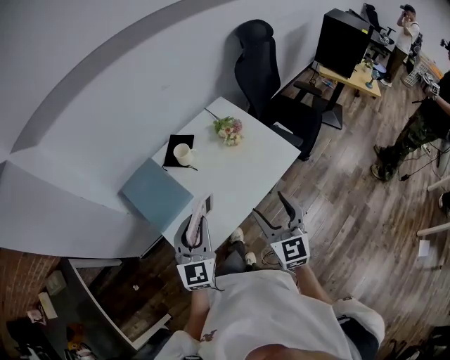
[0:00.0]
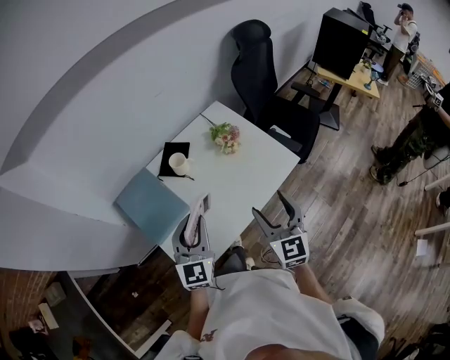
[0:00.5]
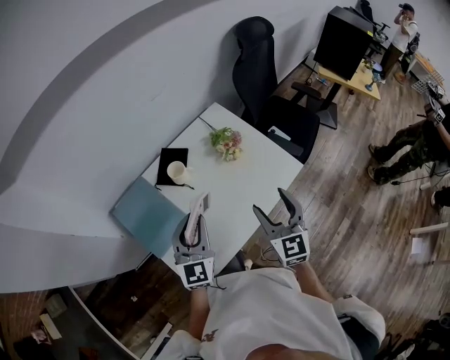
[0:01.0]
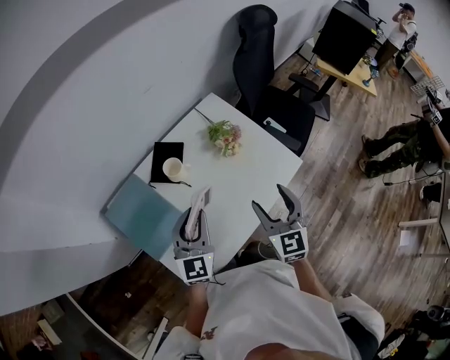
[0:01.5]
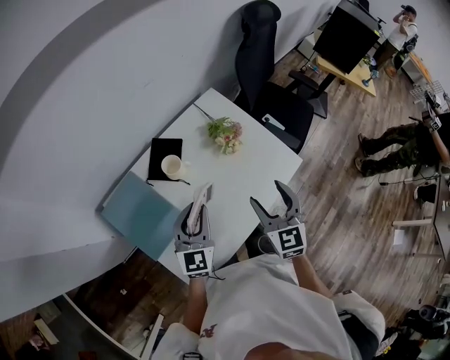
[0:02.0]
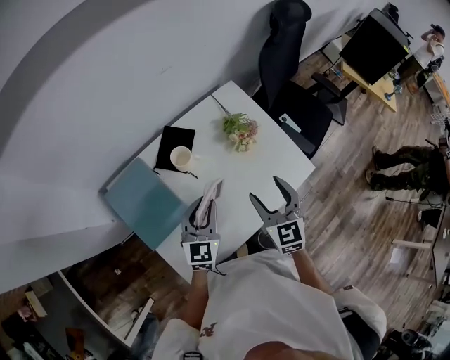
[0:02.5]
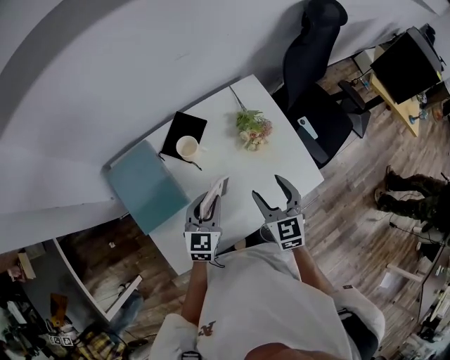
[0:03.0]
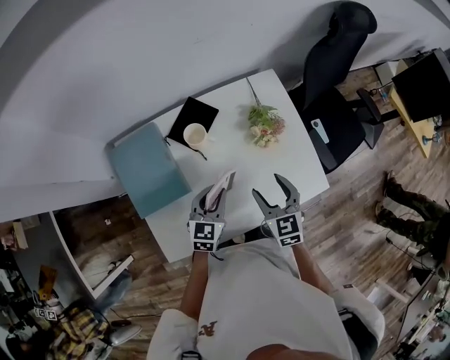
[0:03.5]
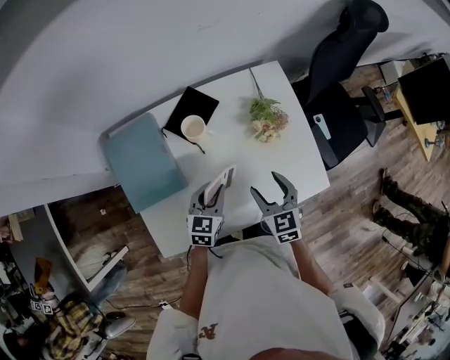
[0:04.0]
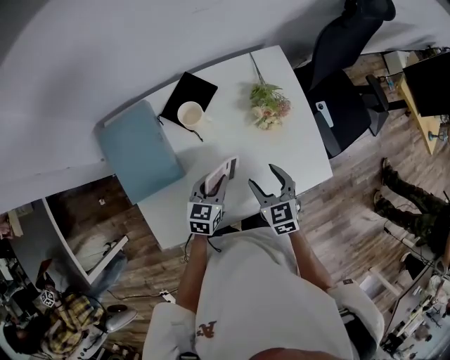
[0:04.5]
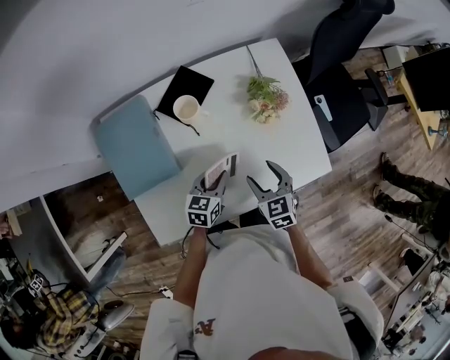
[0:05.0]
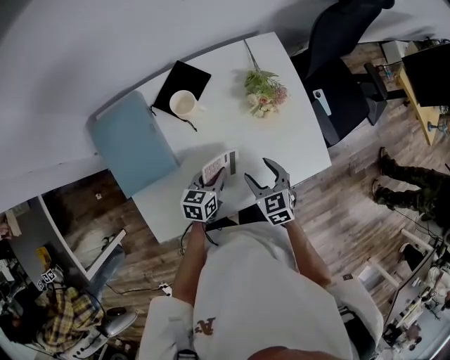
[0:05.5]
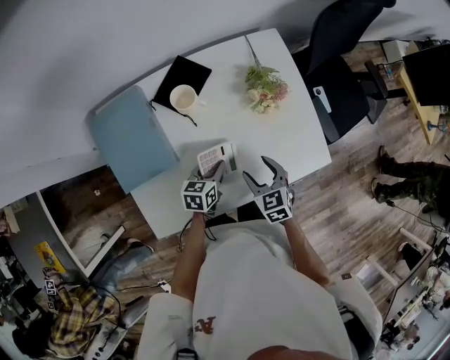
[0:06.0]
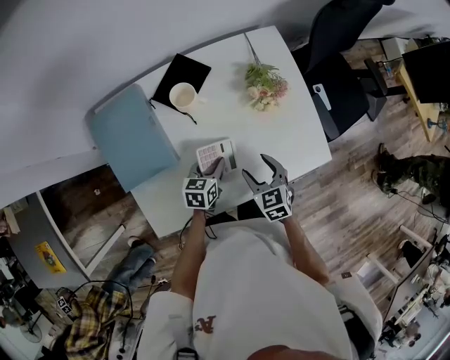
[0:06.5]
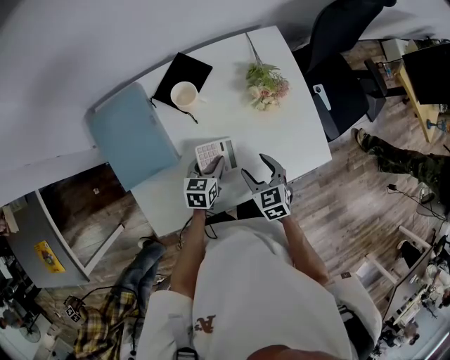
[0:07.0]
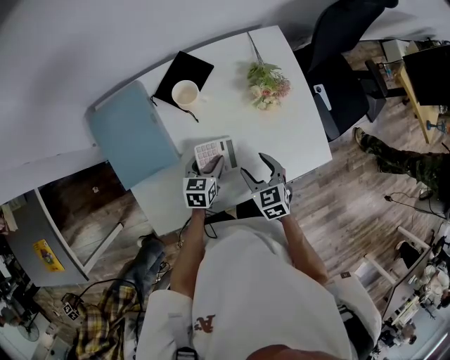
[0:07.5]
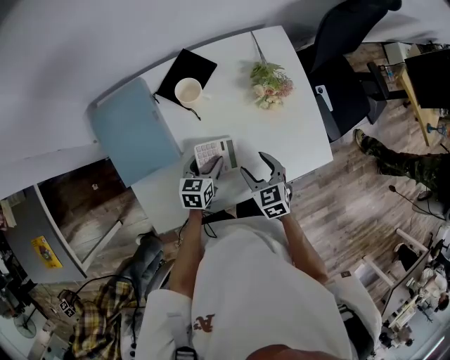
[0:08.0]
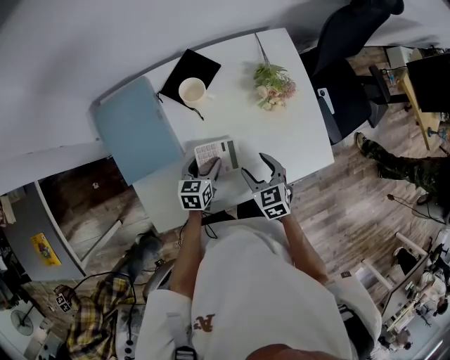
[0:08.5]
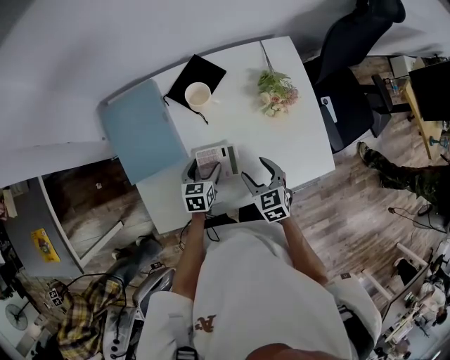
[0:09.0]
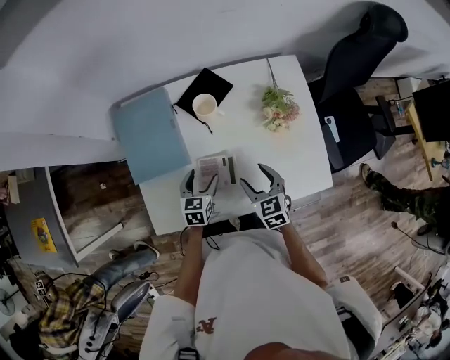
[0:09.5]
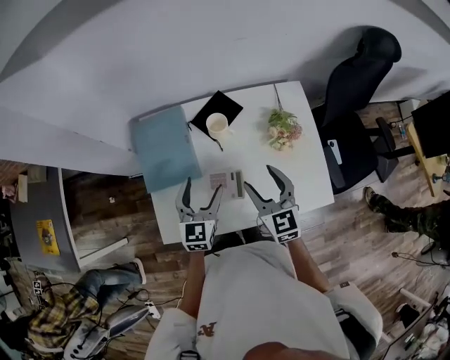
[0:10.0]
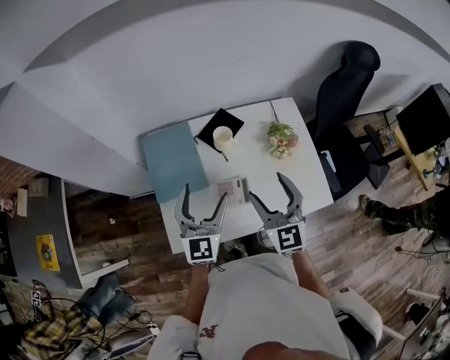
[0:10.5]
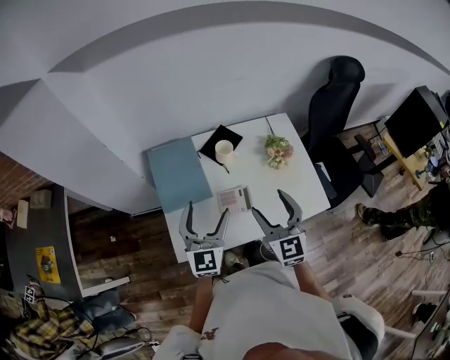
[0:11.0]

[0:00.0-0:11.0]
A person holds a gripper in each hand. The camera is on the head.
0:00.0 to 0:02.0: The right gripper shifts about 20 cm forward; the left gripper moves forward and downward, roughly 20 cm.
0:02.0 to 0:03.5: The left gripper shifts approximately 10 cm downward, and swivels approximately 20 degrees, while the right gripper heads downward and forward, covering approximately 15 cm, and rotates about 30 degrees.
0:03.5 to 0:05.5: Both grippers travel together downward, about 10 cm. The left gripper changes its angle by roughly 30 degrees.
0:05.5 to 0:07.5: The left gripper opens.
0:07.5 to 0:09.0: The left gripper moves some 5 cm.
0:09.0 to 0:11.0: The two grippers go some 30 cm upward. The right gripper angles its fingers upward, by roughly 30 degrees. The left gripper angles its fingers upward, by about 40 degrees.

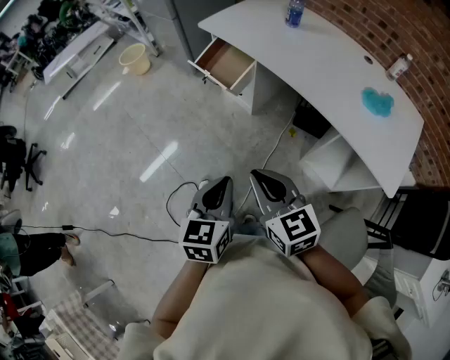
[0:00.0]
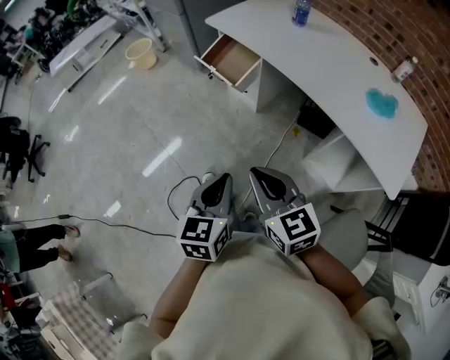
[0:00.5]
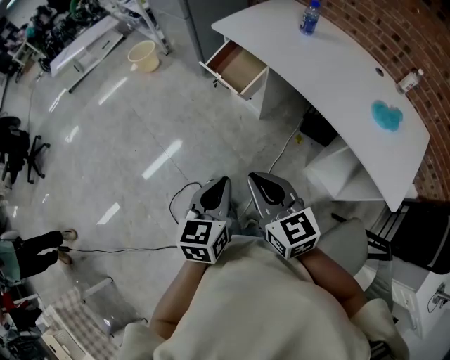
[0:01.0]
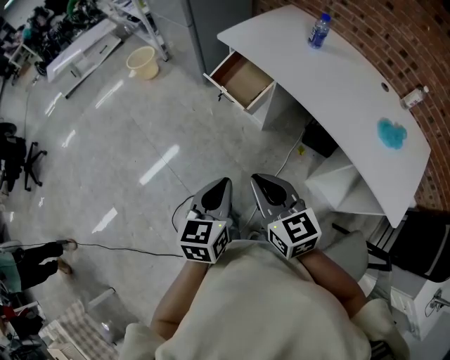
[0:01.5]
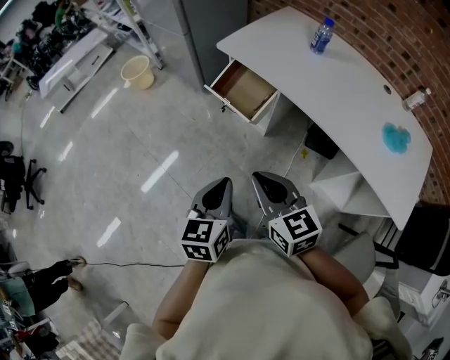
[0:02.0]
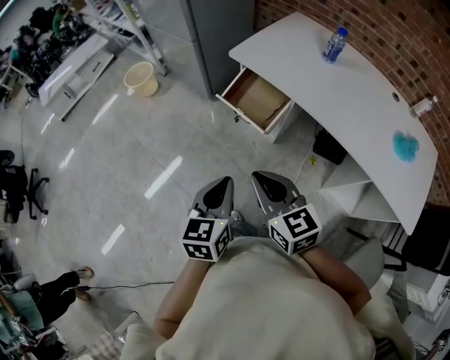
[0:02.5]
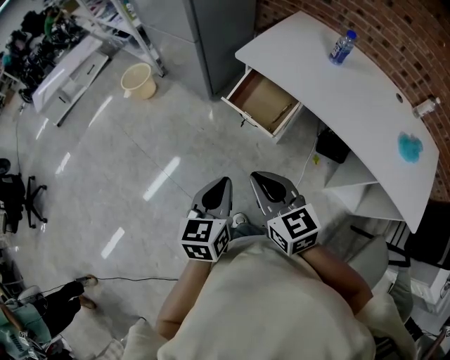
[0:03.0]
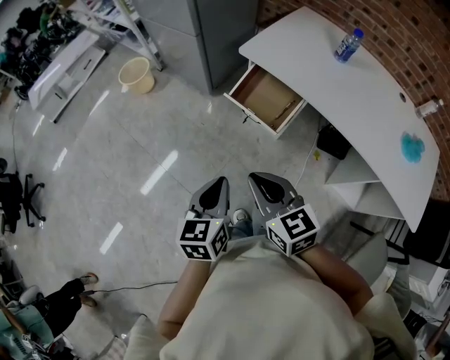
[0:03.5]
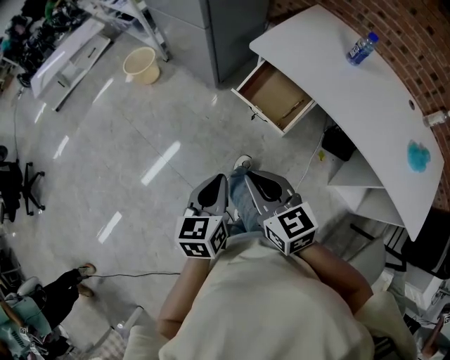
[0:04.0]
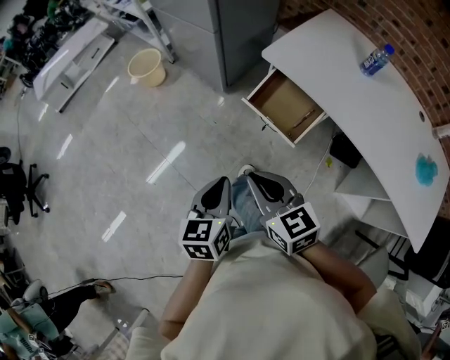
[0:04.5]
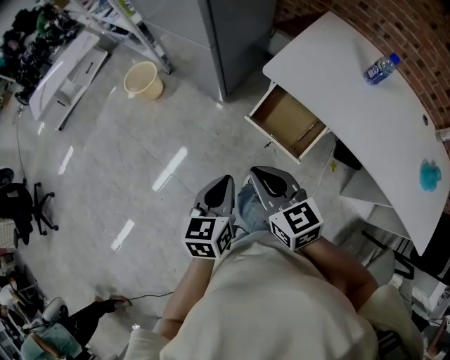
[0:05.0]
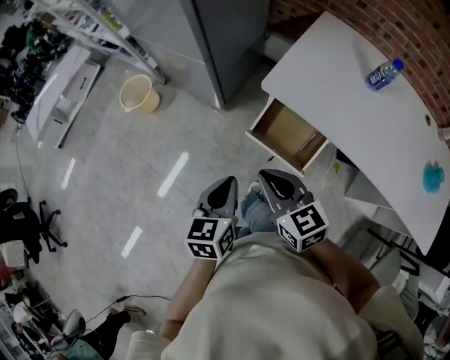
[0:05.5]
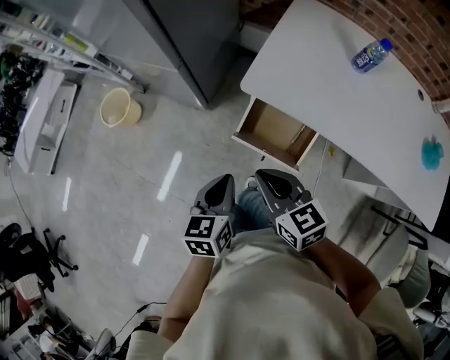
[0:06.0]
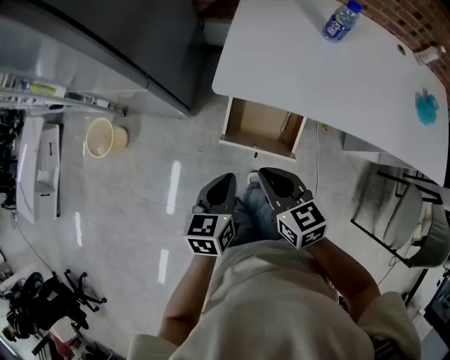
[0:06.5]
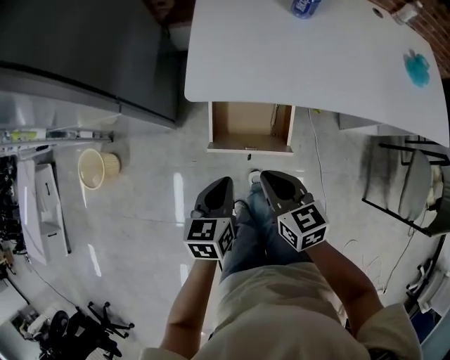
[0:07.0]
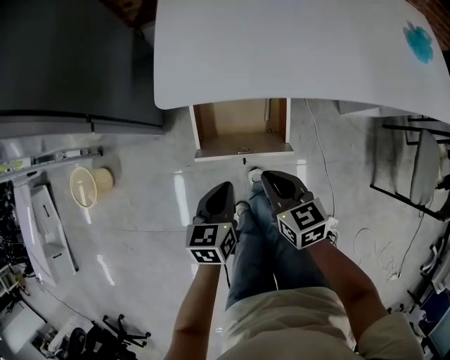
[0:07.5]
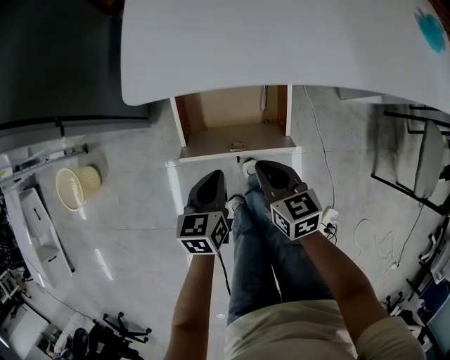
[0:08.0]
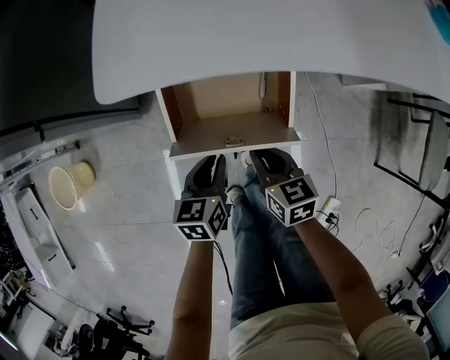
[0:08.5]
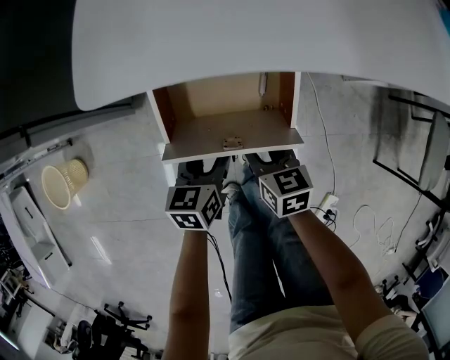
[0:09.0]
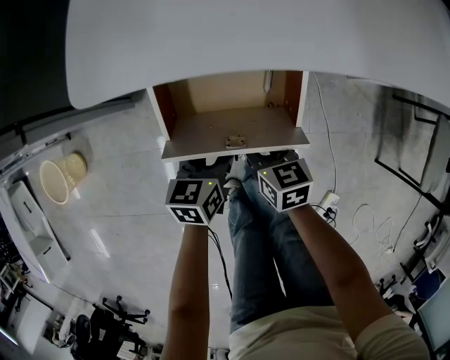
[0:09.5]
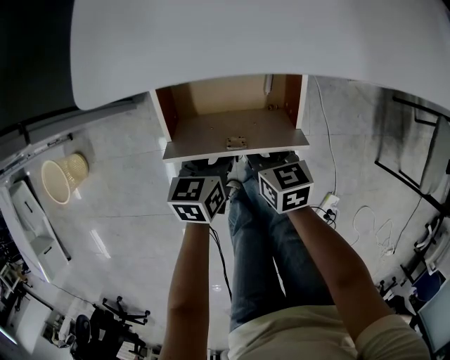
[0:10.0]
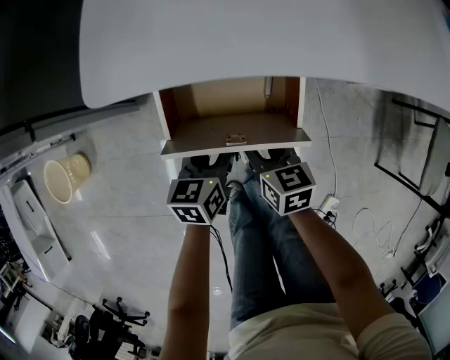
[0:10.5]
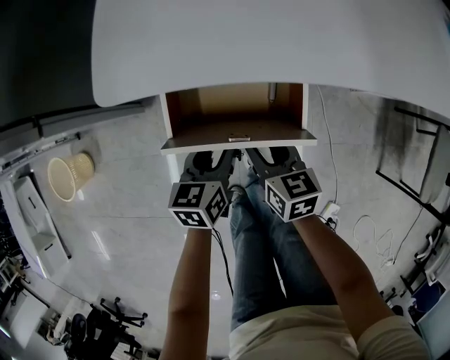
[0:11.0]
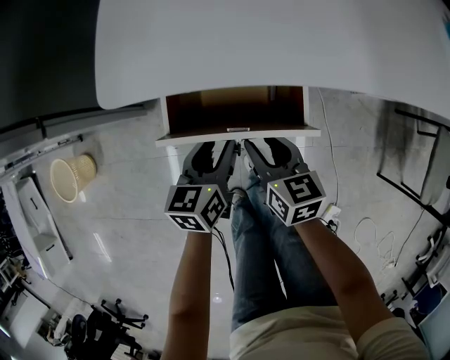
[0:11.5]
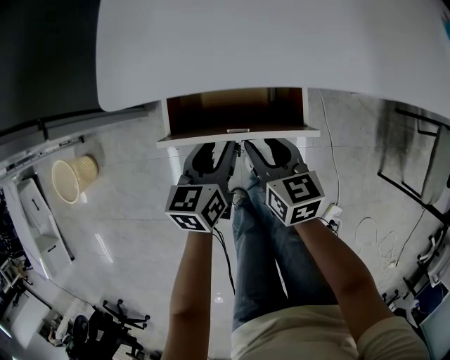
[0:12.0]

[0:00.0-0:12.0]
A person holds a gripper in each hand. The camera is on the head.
0:00.0 to 0:02.0: Both grippers move forward and to the left, some 20 cm.
0:02.0 to 0:04.0: Both grippers move to the left and forward, approximately 20 cm.
0:04.0 to 0:06.0: Both grippers move forward, about 25 cm.
0:06.0 to 0:08.0: Both grippers travel together downward, approximately 30 cm. The left gripper rotates some 30 degrees, while the right gripper changes its angle by approximately 40 degrees.
0:08.0 to 0:10.0: The left gripper is displaced downward and forward by some 10 cm, and opens, while the right gripper is displaced downward by about 10 cm, and opens.
0:10.0 to 0:12.0: The two grippers go some 5 cm upward.

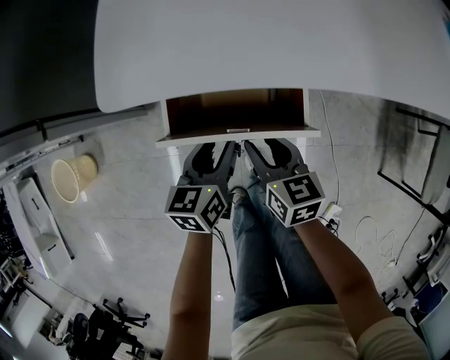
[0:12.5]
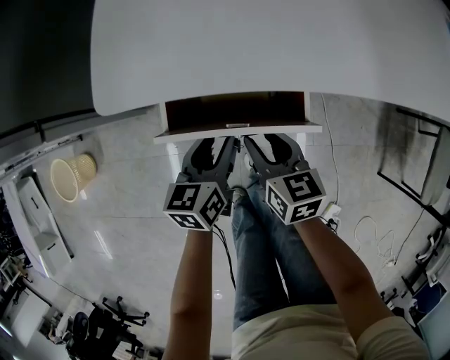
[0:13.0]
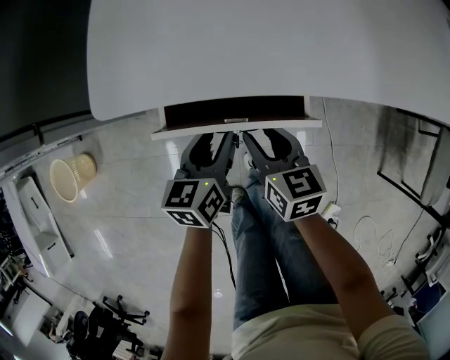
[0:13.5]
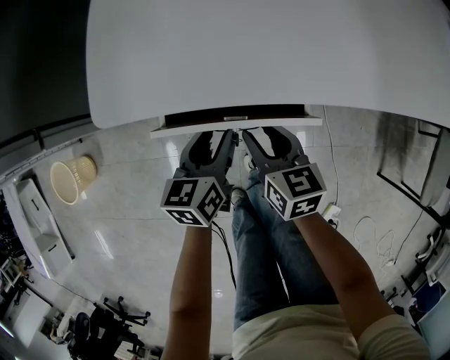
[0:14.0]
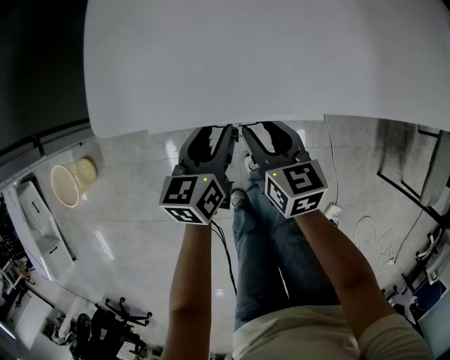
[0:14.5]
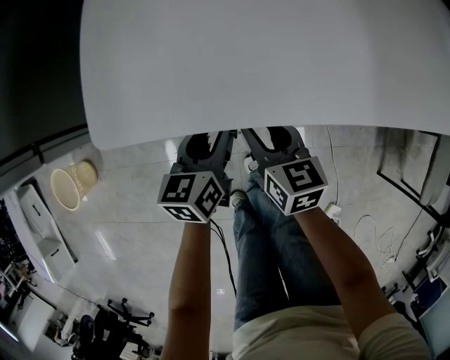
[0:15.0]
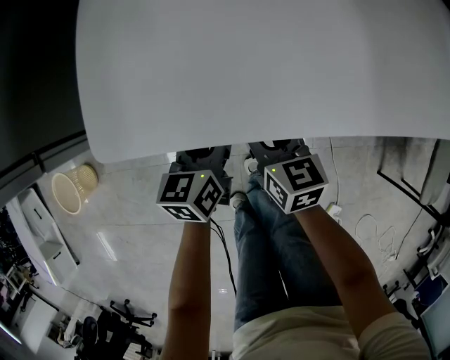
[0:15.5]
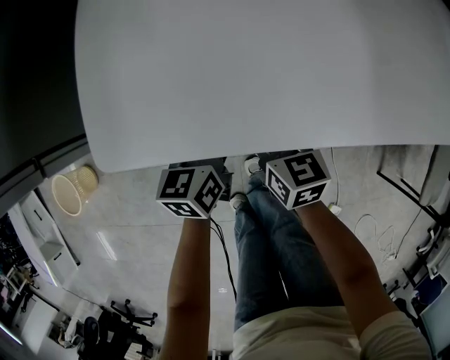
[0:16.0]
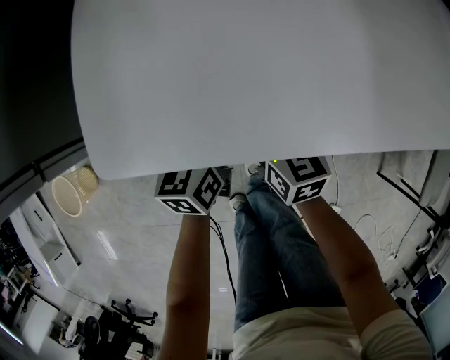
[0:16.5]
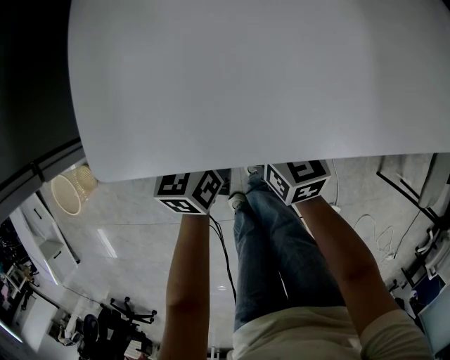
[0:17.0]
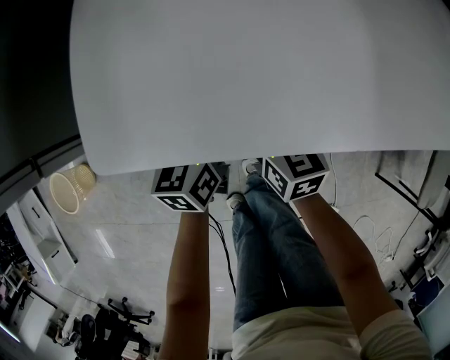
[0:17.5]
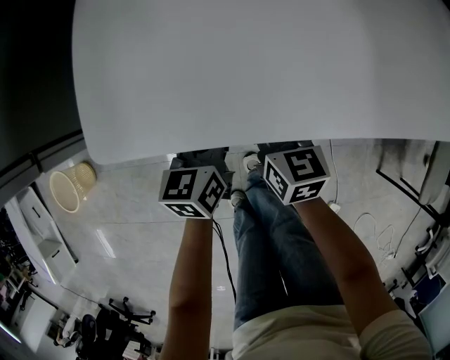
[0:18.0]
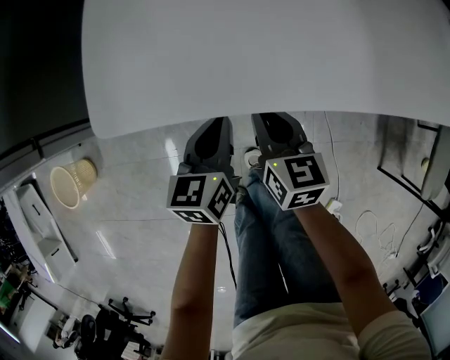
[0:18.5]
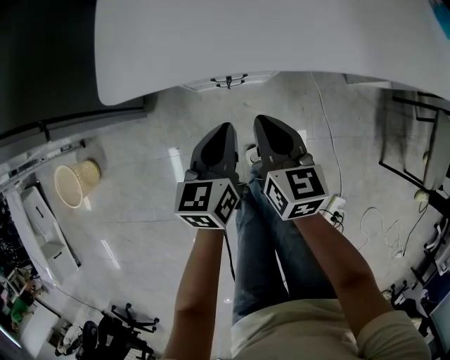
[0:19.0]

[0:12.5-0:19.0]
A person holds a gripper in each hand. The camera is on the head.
0:12.5 to 0:14.5: Both grippers move forward, approximately 5 cm.
0:14.5 to 0:17.0: The grippers both shift forward by roughly 10 cm.
0:17.0 to 0:19.0: The two grippers go some 10 cm backward. The left gripper closes. Meanwhile the right gripper closes its fingers.
